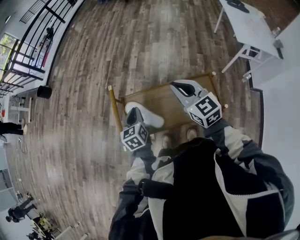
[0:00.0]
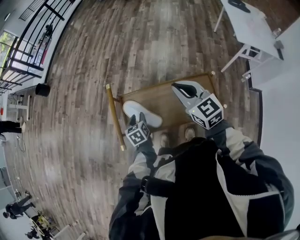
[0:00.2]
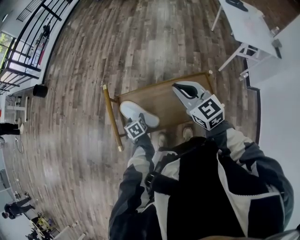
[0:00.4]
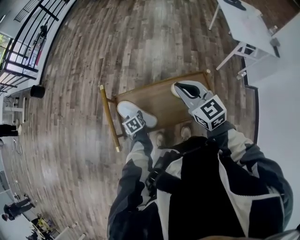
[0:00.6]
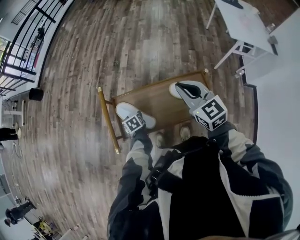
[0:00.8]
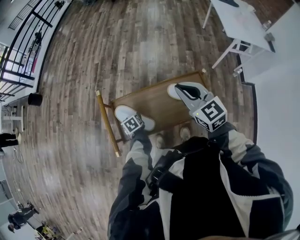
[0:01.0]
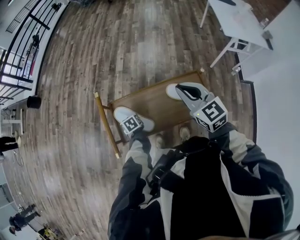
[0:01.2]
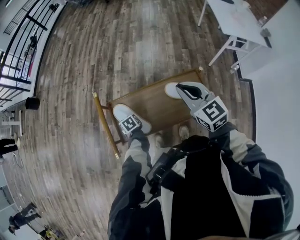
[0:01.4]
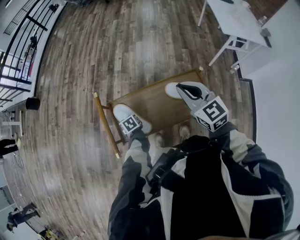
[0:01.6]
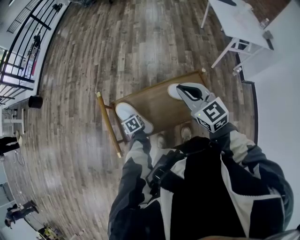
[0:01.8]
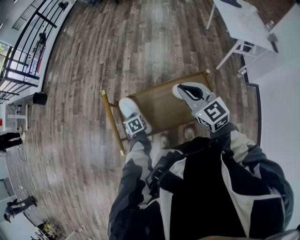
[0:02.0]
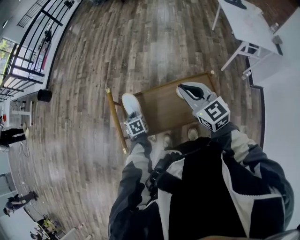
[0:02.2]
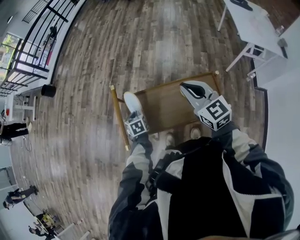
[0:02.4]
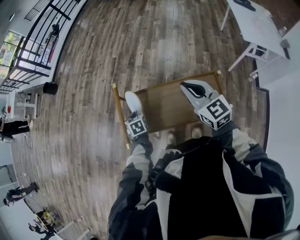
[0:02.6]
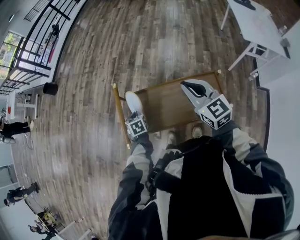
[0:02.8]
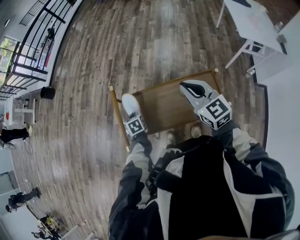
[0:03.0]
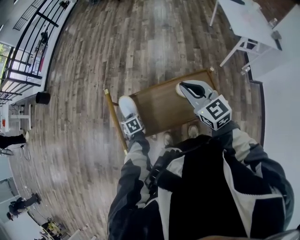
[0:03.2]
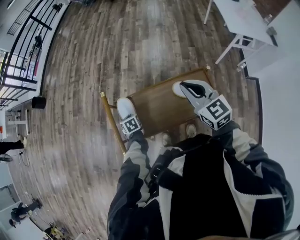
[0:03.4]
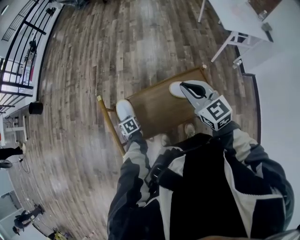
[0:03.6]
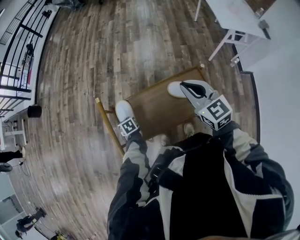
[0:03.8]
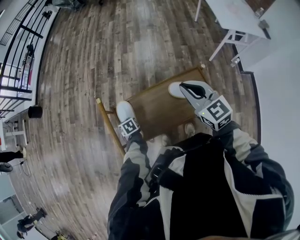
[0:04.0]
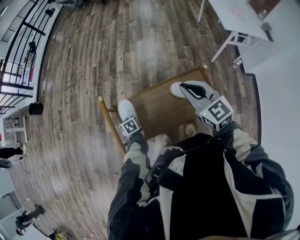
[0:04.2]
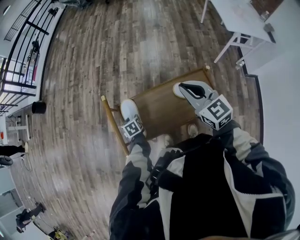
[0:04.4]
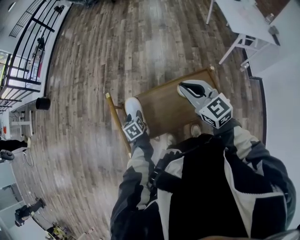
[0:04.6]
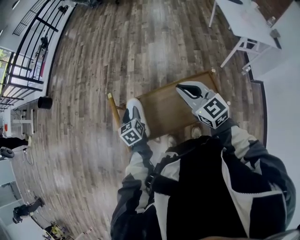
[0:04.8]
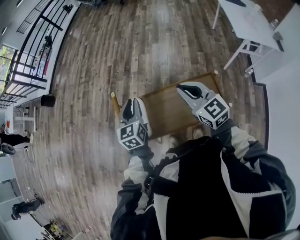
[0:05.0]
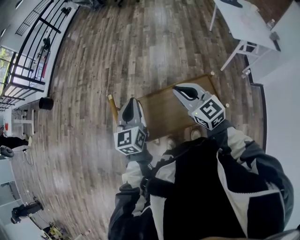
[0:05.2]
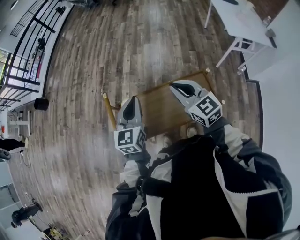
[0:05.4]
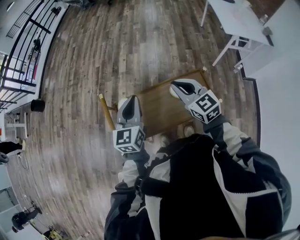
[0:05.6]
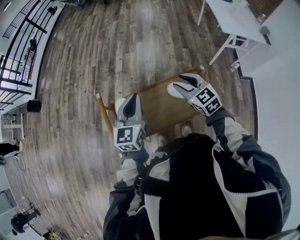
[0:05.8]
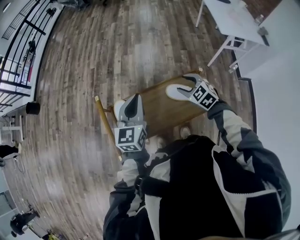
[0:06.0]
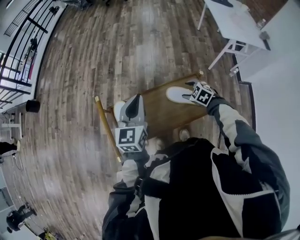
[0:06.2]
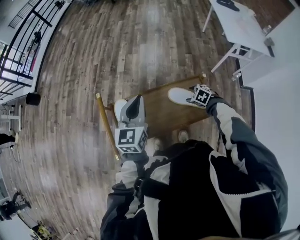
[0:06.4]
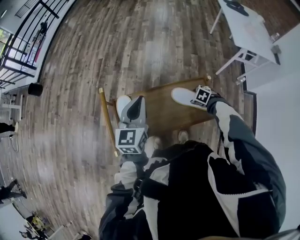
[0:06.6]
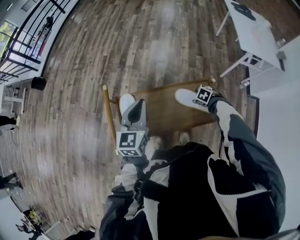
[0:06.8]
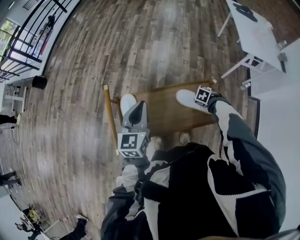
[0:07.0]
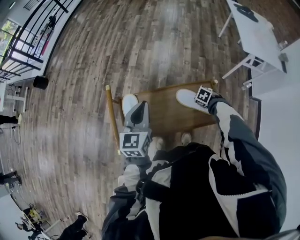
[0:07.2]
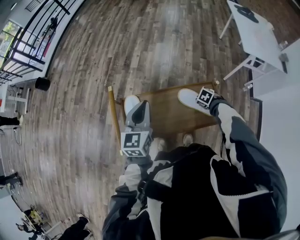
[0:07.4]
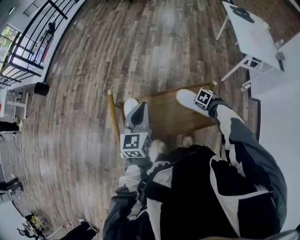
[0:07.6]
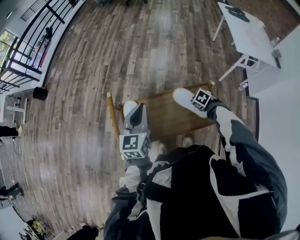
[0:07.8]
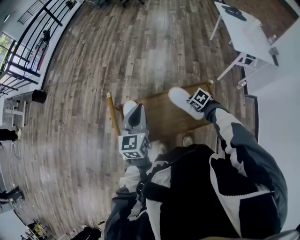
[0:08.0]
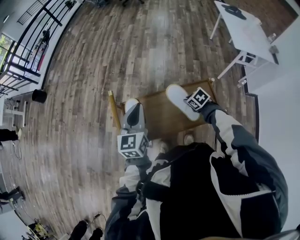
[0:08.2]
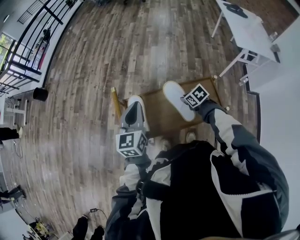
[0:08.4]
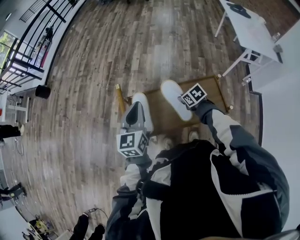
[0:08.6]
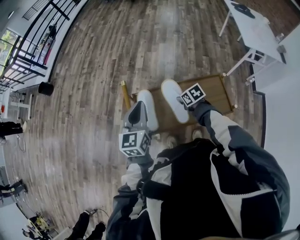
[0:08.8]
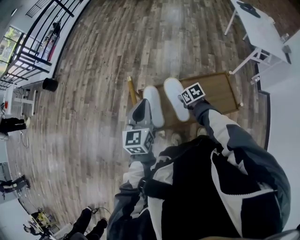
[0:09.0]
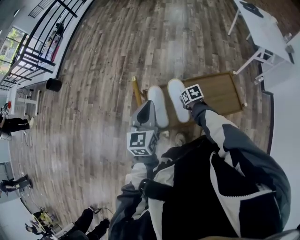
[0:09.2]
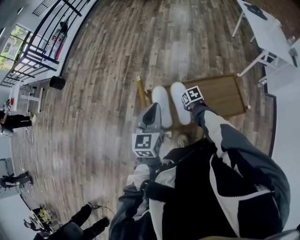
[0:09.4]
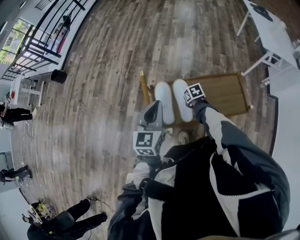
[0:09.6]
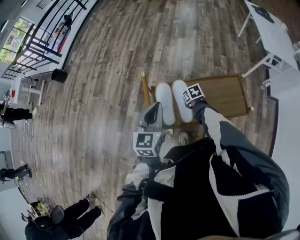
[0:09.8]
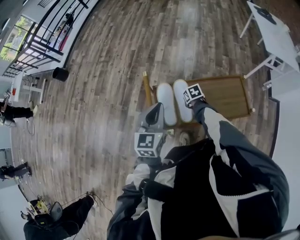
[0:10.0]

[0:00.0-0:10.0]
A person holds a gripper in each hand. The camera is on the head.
0:00.0 to 0:01.4: The right gripper moves to the right, about 5 cm, while the left gripper goes some 20 cm downward, tips its fingers downward by roughly 30 degrees, and opens, then closes again.
0:01.4 to 0:02.8: The left gripper heads upward, covering about 10 cm.
0:02.8 to 0:04.2: The left gripper travels downward by approximately 10 cm, and opens up.
0:04.2 to 0:05.8: The left gripper goes about 35 cm upward and to the right, tips its fingers upward by roughly 50 degrees, and closes; the right gripper heads downward, covering some 5 cm, and opens.
0:05.8 to 0:07.2: The right gripper shifts roughly 25 cm downward, points its fingers roughly 50 degrees further downward, and closes up.
0:07.2 to 0:08.6: The right gripper ends up approximately 20 cm from where it was, and rotates approximately 40 degrees. The left gripper shifts by some 10 cm.
0:08.6 to 0:10.0: The right gripper travels to the left and downward by some 15 cm. The left gripper is displaced to the left by approximately 5 cm.

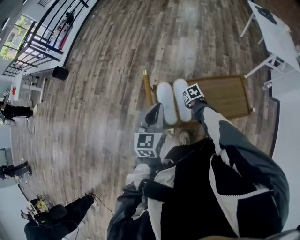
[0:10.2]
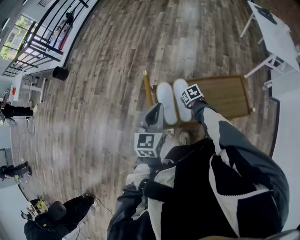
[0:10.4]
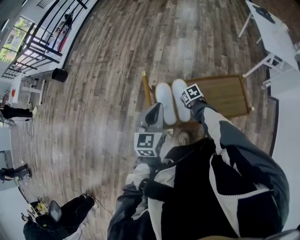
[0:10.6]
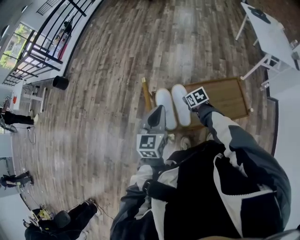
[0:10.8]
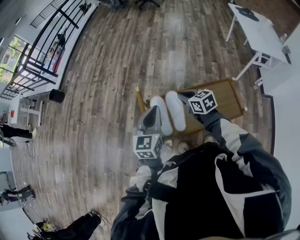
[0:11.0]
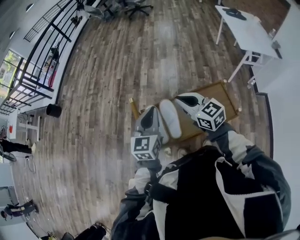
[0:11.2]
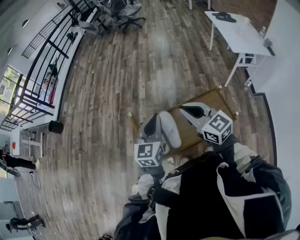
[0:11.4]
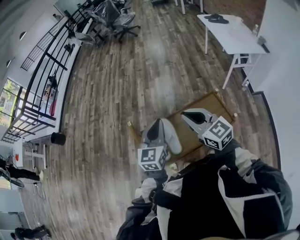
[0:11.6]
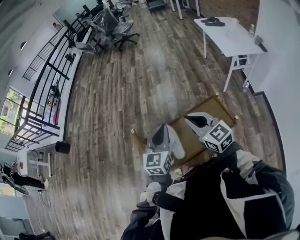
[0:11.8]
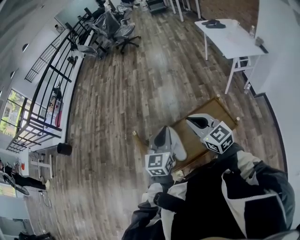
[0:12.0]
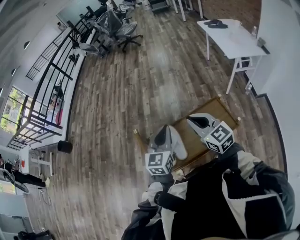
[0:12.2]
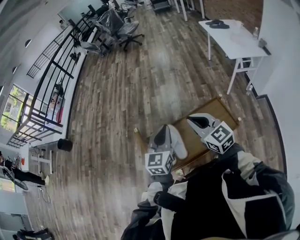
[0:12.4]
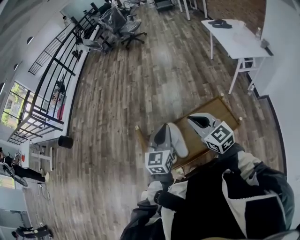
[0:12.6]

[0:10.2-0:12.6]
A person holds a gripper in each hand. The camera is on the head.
0:10.2 to 0:11.4: The left gripper is displaced to the right and upward by about 10 cm. The right gripper heads upward, covering about 40 cm, angles its fingers upward, by approximately 60 degrees, and opens, then closes once more.
0:11.4 to 0:12.6: The grippers move only a little.

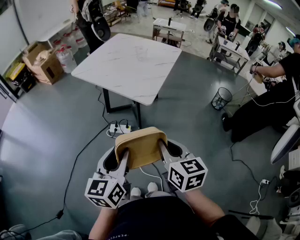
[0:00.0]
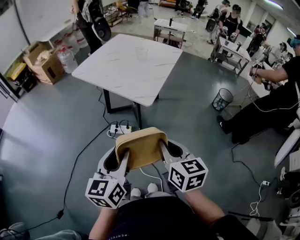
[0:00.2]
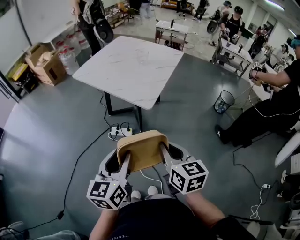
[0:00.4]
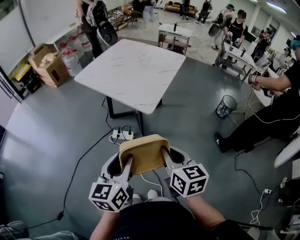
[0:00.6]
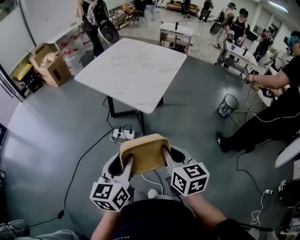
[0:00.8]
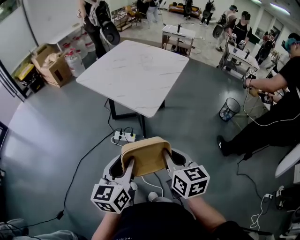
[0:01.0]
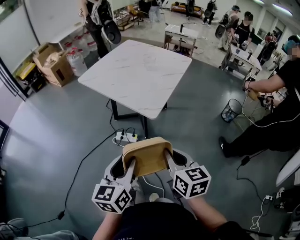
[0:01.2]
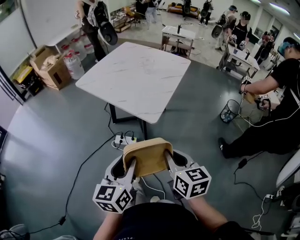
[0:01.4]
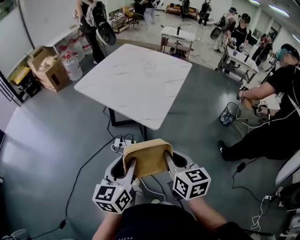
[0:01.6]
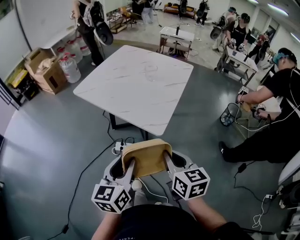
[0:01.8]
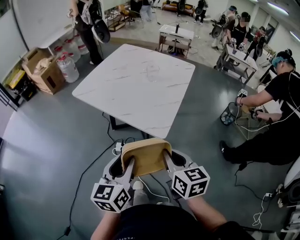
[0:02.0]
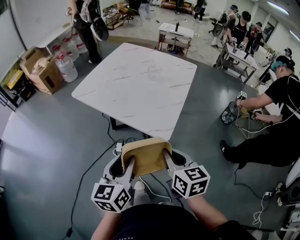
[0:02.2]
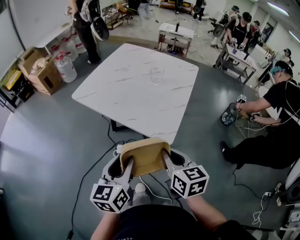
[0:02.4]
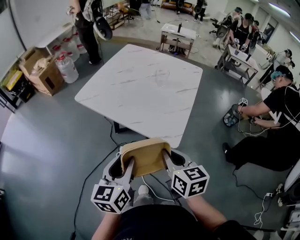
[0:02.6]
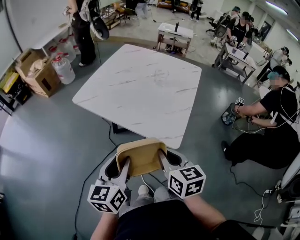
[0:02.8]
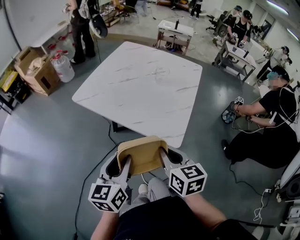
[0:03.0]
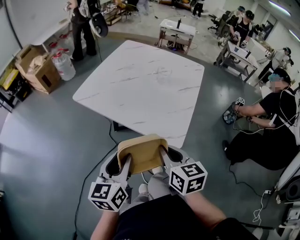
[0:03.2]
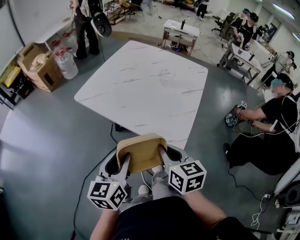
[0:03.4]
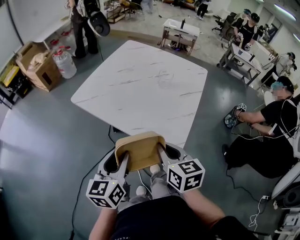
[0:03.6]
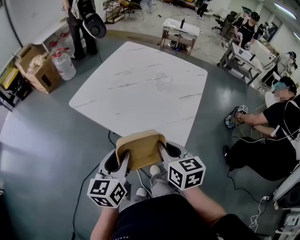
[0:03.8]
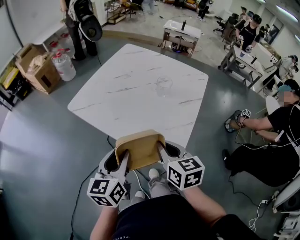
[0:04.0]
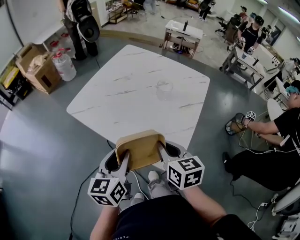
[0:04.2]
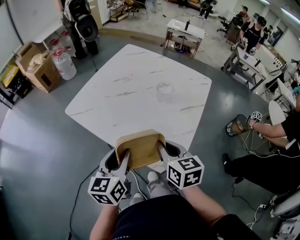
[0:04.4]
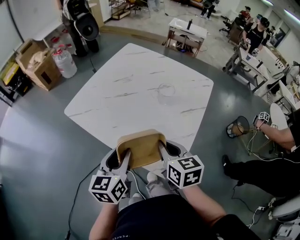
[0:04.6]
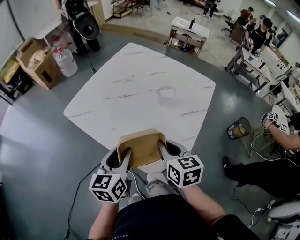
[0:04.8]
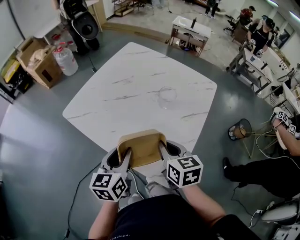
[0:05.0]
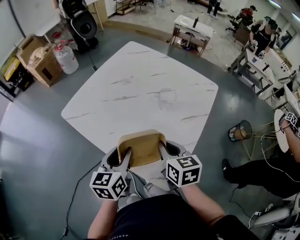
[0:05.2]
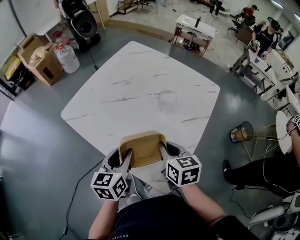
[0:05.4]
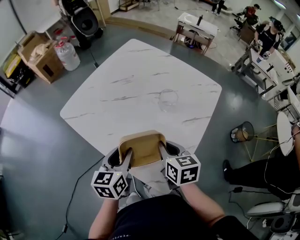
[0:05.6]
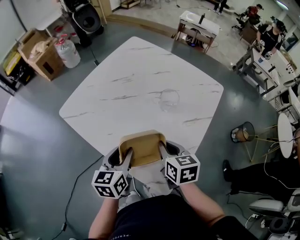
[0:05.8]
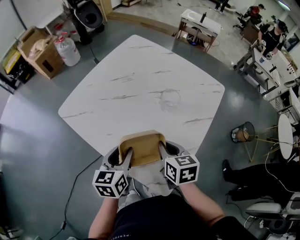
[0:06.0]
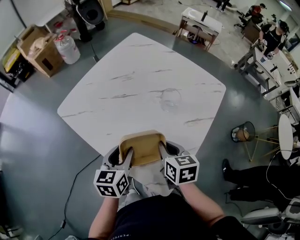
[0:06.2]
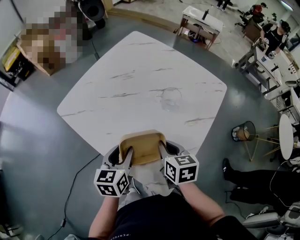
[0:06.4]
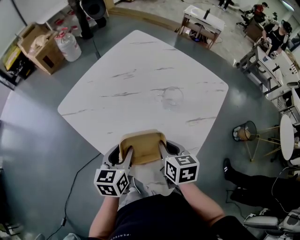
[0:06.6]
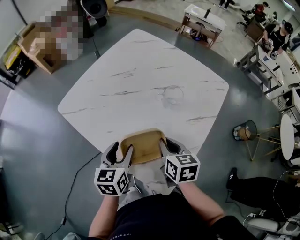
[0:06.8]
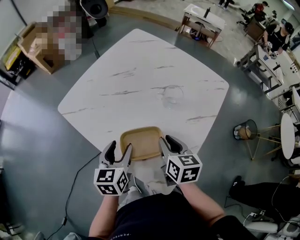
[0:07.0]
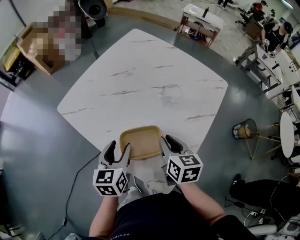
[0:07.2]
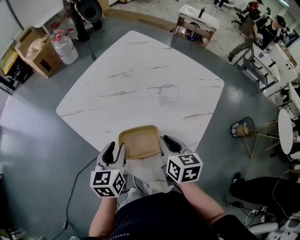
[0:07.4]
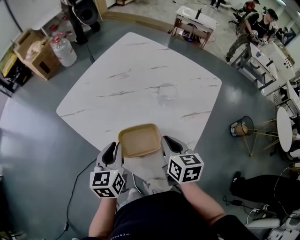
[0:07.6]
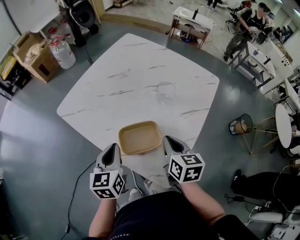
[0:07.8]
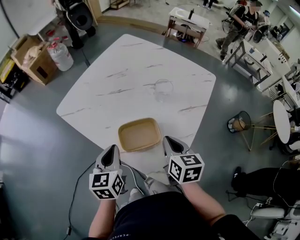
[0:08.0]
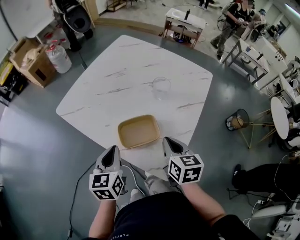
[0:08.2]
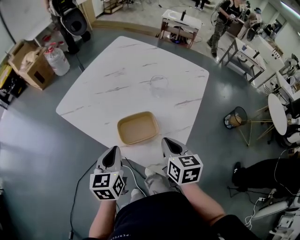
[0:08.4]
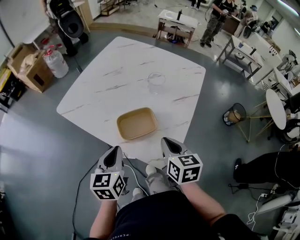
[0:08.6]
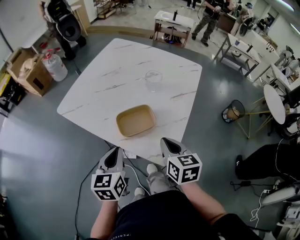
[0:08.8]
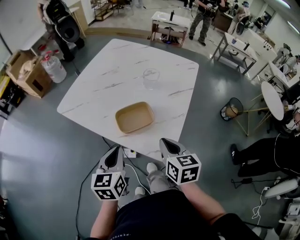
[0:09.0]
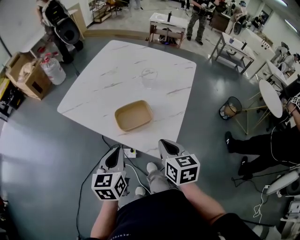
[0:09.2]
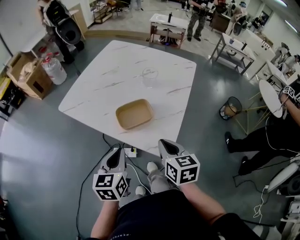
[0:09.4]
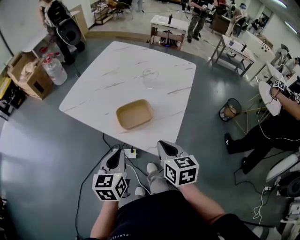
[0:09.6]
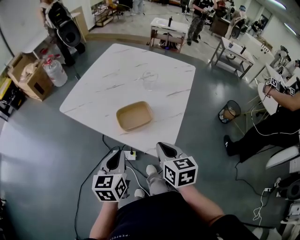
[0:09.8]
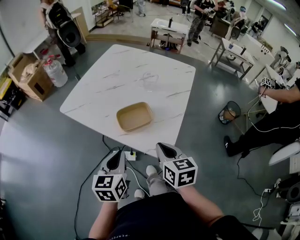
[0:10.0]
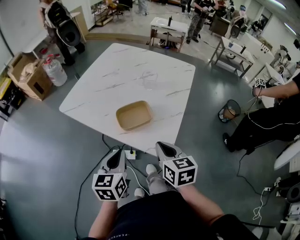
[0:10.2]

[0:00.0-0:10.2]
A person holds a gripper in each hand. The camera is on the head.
0:00.0 to 0:01.4: The grippers both shift forward by roughly 10 cm.
0:01.4 to 0:03.0: Both grippers move forward and to the left, about 25 cm.
0:03.0 to 0:04.4: The two grippers go roughly 15 cm forward.
0:04.4 to 0:05.8: Both grippers move forward and downward, approximately 10 cm.
0:05.8 to 0:07.2: The grippers make only small movements.
0:07.2 to 0:08.8: Both grippers move backward, about 15 cm. The left gripper closes its fingers.
0:08.8 to 0:10.2: The two grippers go about 5 cm backward.

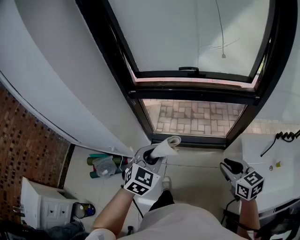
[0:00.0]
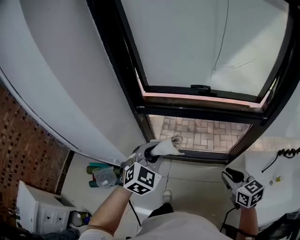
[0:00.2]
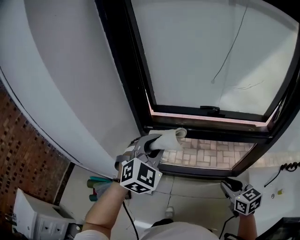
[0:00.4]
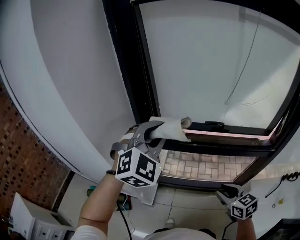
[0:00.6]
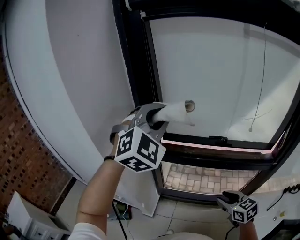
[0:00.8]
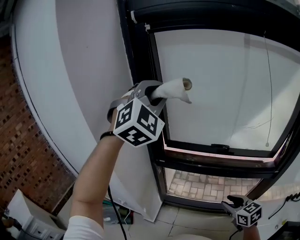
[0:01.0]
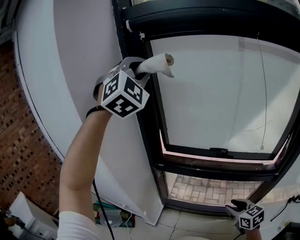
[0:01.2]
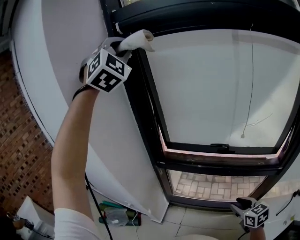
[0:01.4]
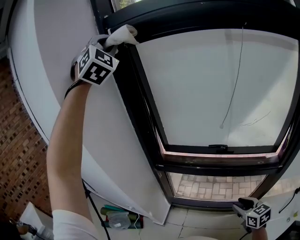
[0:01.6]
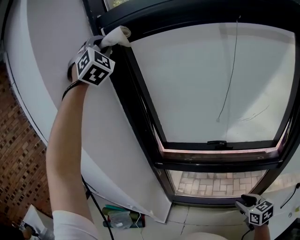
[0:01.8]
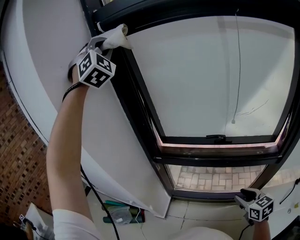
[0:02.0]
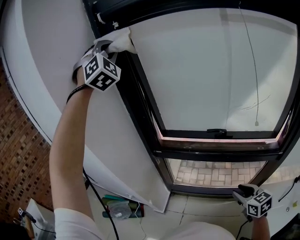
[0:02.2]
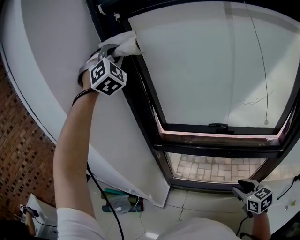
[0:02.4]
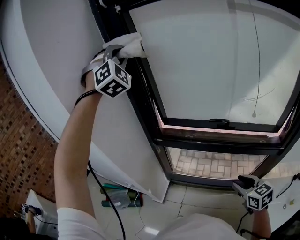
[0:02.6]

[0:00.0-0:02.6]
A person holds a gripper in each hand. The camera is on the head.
0:00.0 to 0:01.2: The right gripper is displaced forward by about 15 cm. The left gripper travels upward and forward by some 60 cm, and tips its fingers upward by about 30 degrees.
0:01.2 to 0:02.6: The left gripper goes about 10 cm forward, and moves roughly 10 cm upward and comes back.
